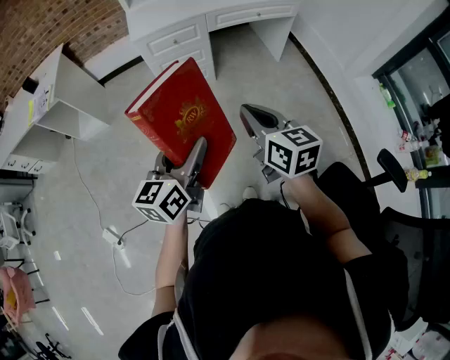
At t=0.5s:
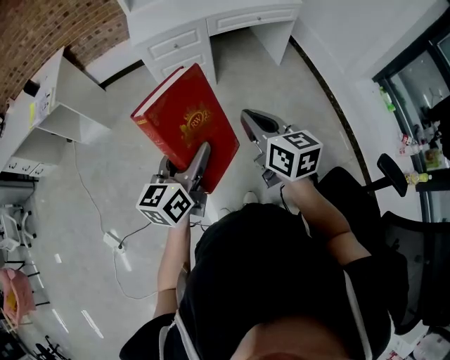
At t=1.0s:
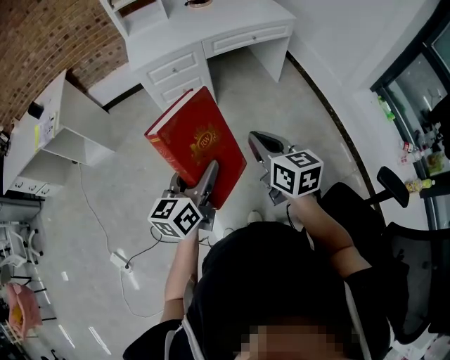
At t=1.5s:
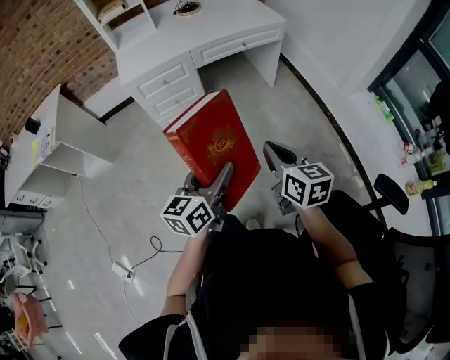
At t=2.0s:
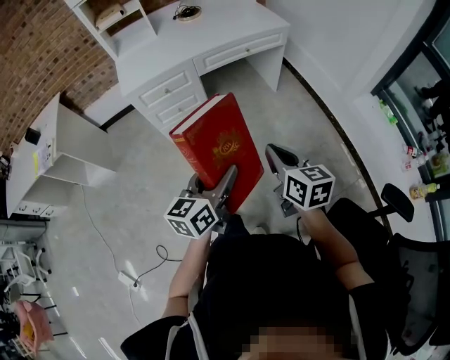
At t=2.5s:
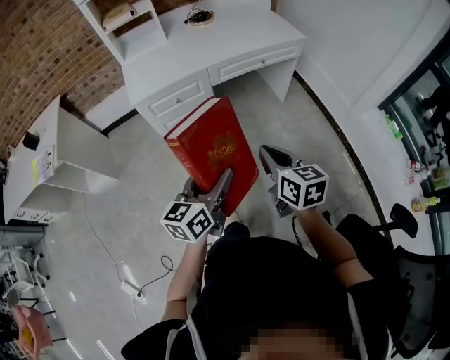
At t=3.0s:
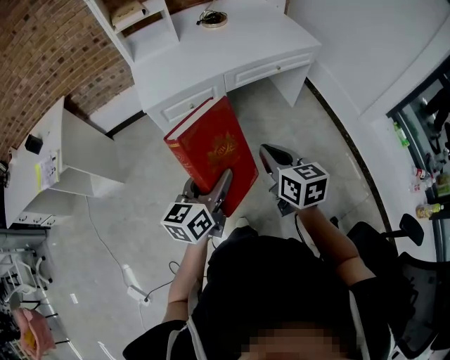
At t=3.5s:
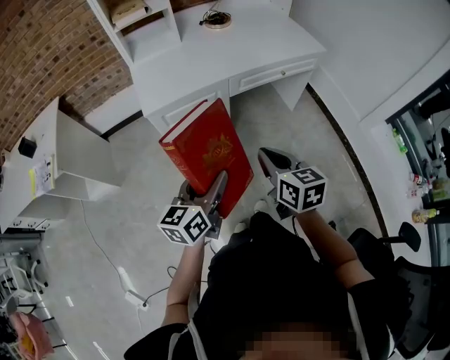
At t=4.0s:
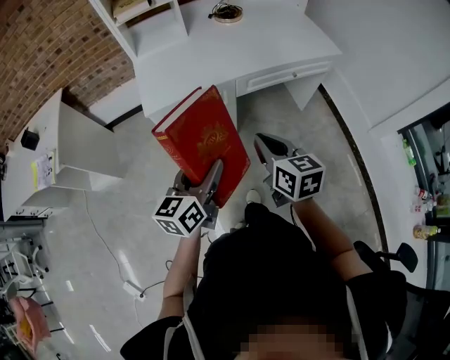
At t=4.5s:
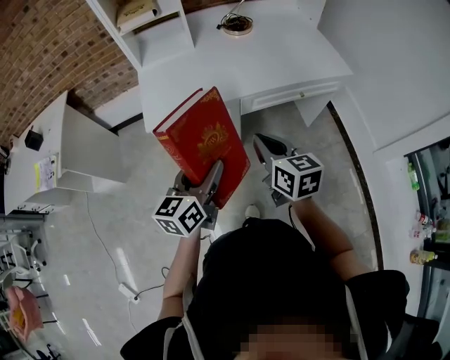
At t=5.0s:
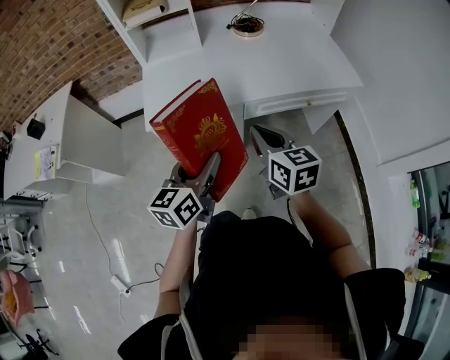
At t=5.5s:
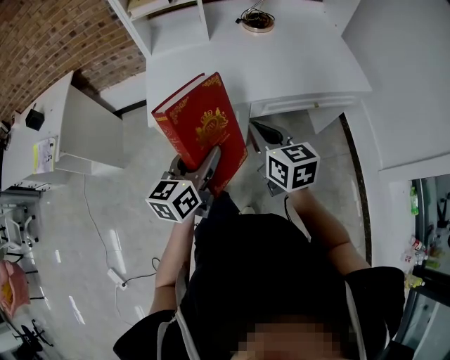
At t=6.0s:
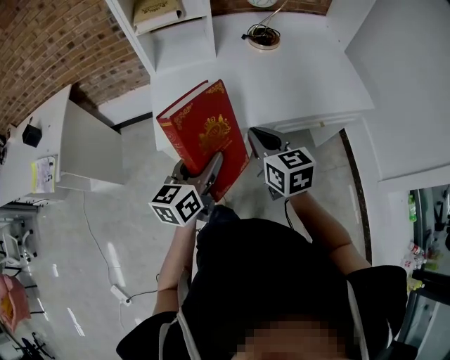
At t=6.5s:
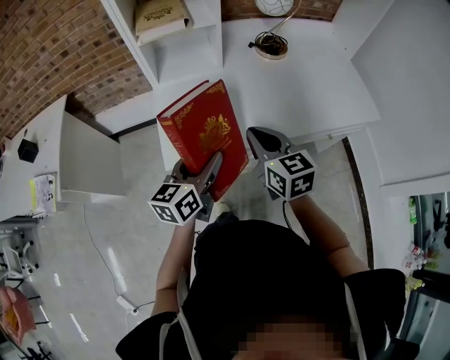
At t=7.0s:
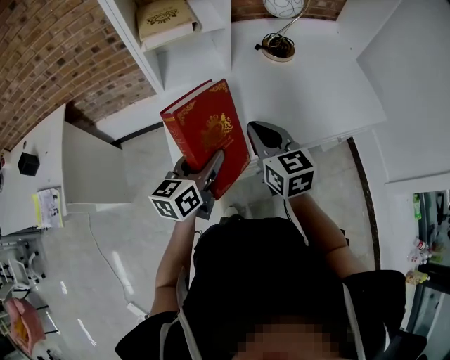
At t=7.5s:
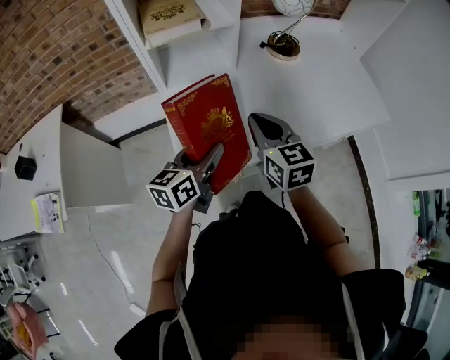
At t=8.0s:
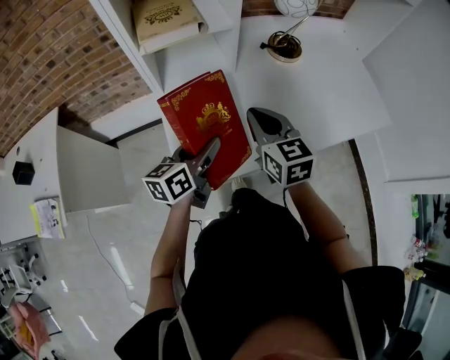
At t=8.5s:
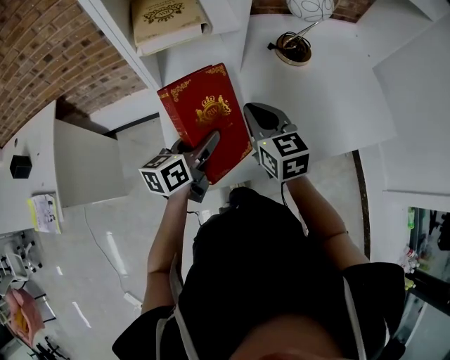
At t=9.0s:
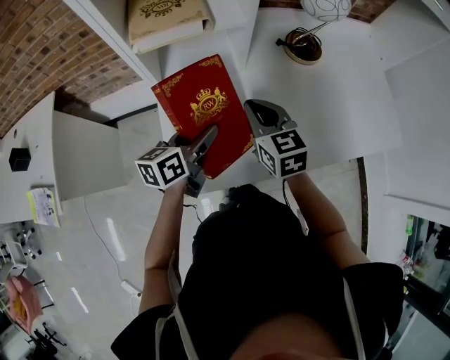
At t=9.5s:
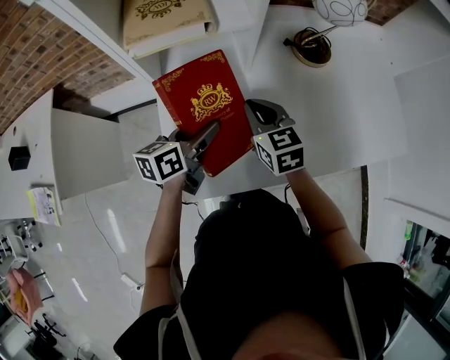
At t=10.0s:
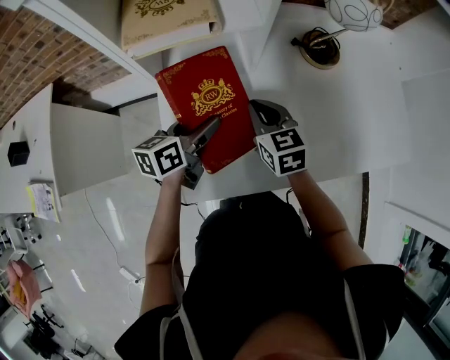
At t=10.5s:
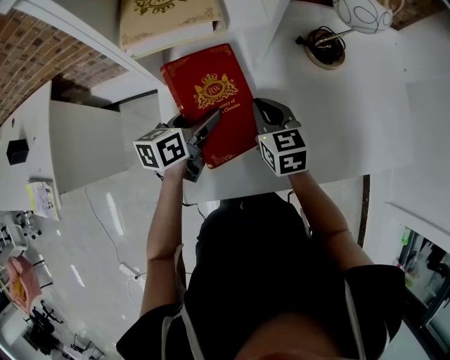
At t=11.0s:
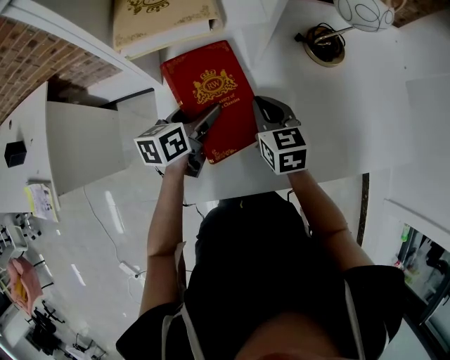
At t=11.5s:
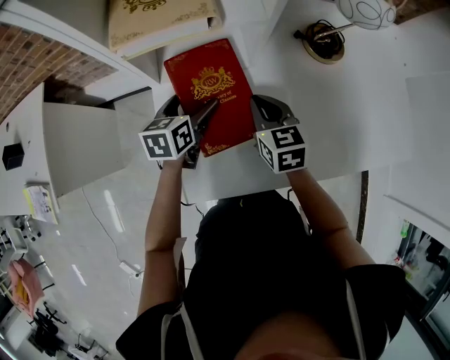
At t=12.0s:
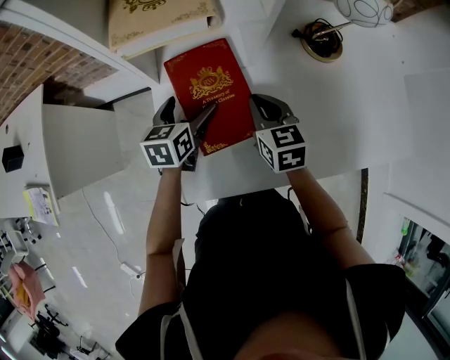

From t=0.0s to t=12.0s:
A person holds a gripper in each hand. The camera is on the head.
From t=0.0s to t=2.0s: The left gripper goes roughly 15 cm forward and to the right. The right gripper travels to the right and forward by approximately 15 cm.
From t=2.0s to t=4.0s: The grippers both shift forward and to the left by some 35 cm.
From t=4.0s to t=6.0s: Both grippers travel together forward, about 20 cm.
From t=6.0s to t=8.0s: Both grippers travel together forward and to the left, some 25 cm.
From t=8.0s to t=10.0s: The right gripper shifts roughly 15 cm forward and downward. Meanwhile the left gripper is displaced forward by approximately 15 cm.
From t=10.0s to t=12.0s: The left gripper shifts by roughly 5 cm, turns by some 20 degrees, and opens its fingers.

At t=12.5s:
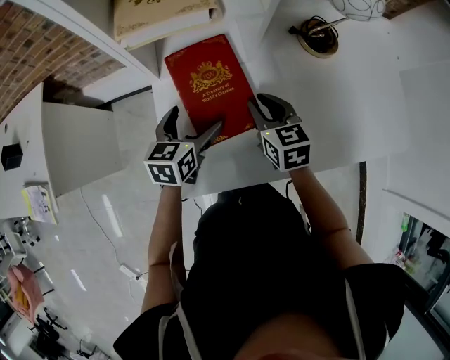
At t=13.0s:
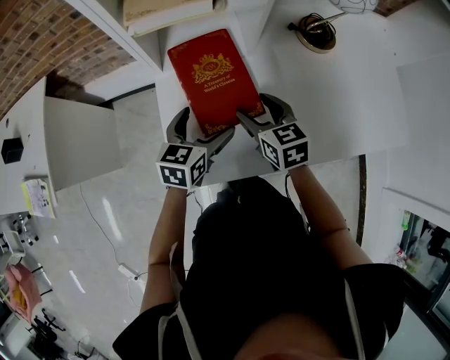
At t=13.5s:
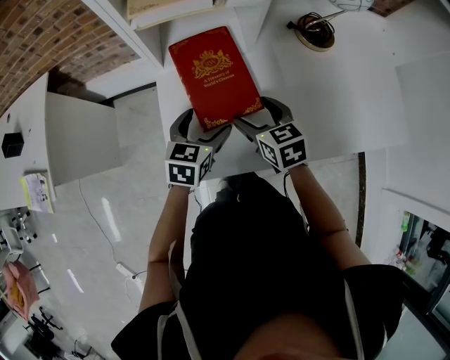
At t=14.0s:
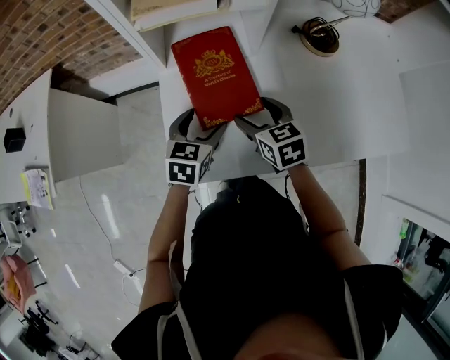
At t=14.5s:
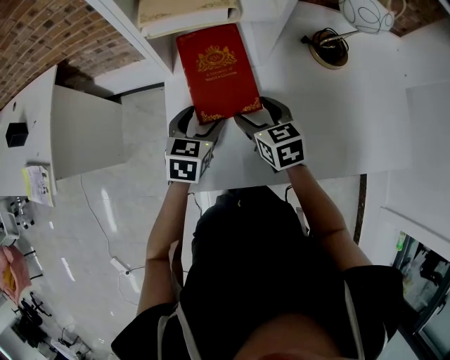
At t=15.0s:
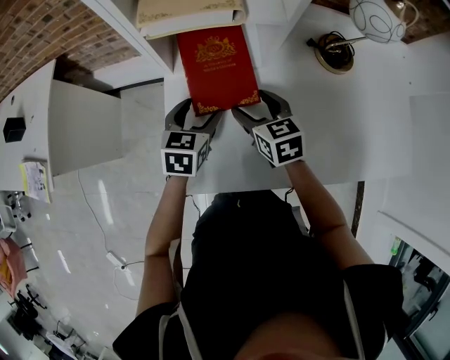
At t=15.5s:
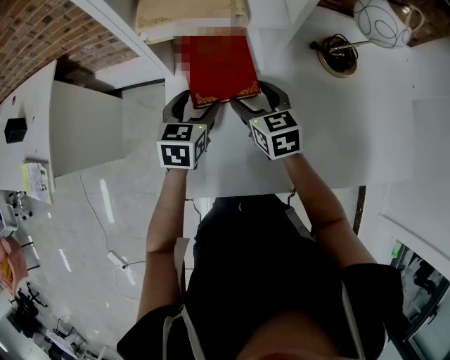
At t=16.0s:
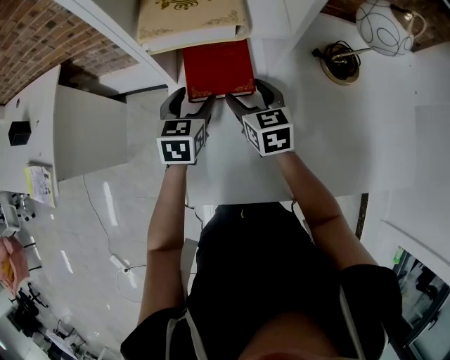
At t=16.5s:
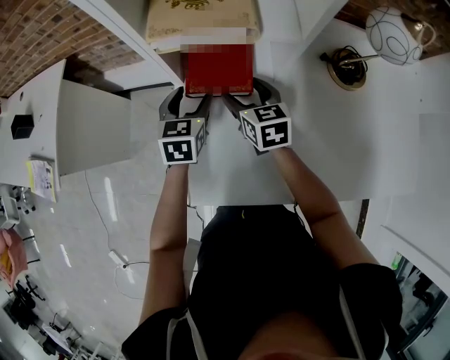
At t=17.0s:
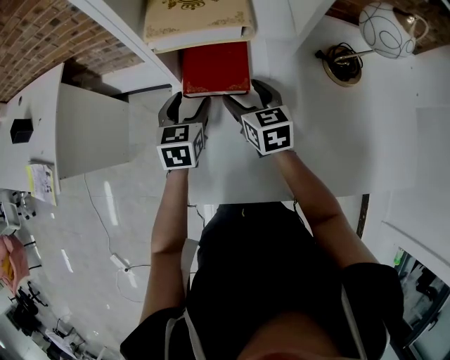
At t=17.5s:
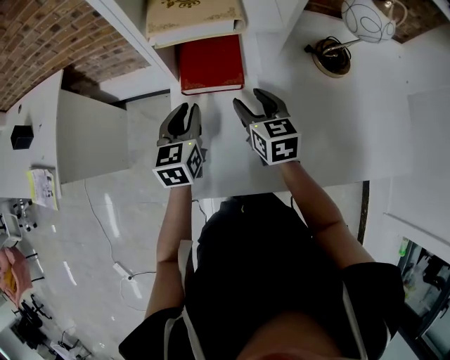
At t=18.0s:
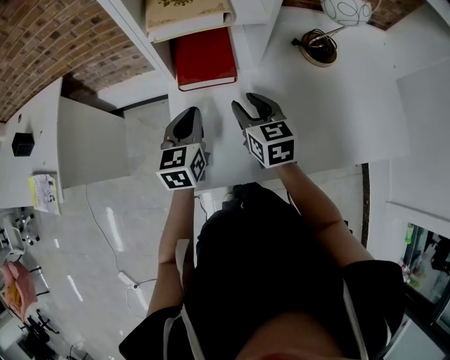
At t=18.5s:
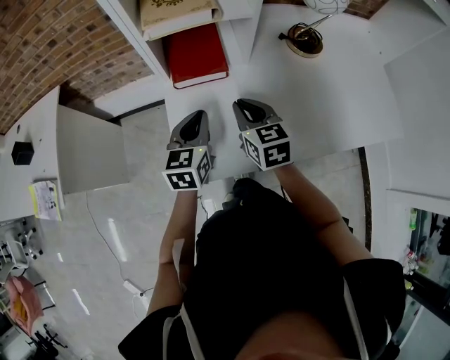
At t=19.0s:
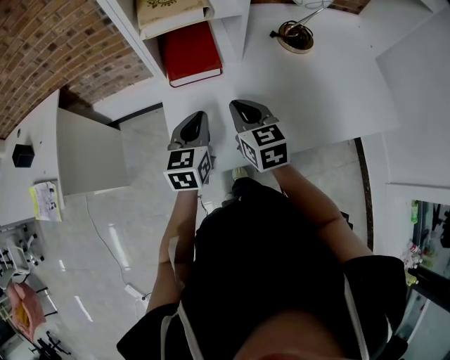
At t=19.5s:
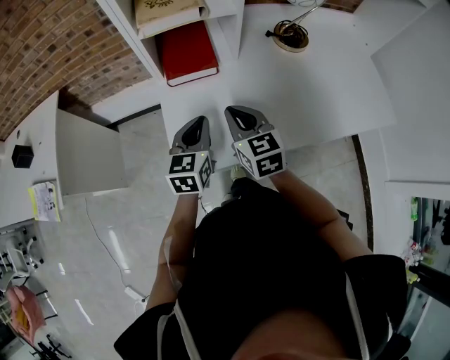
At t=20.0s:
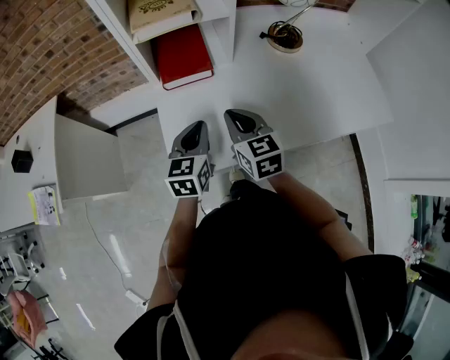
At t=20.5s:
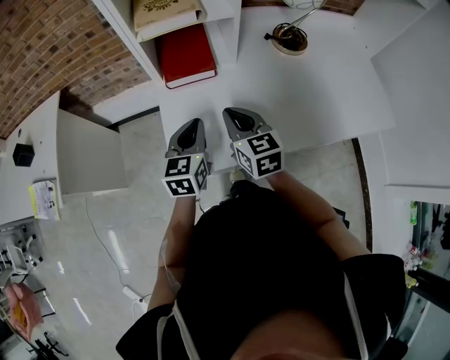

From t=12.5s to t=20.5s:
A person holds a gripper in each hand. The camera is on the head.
From t=12.5s to t=14.5s: The left gripper closes its fingers, while the right gripper opens.
From t=14.5s to t=16.5s: The two grippers go some 10 cm forward.
From t=16.5s to t=18.5s: The left gripper travels backward by about 15 cm, and closes its fingers, while the right gripper shifts about 15 cm backward and upward, and closes up.
From t=18.5s to t=20.5s: The two grippers go about 5 cm backward.

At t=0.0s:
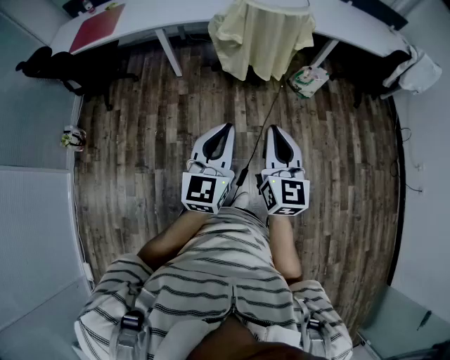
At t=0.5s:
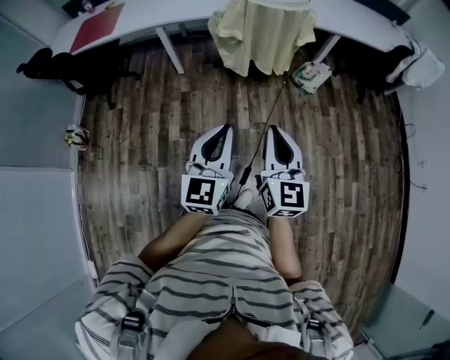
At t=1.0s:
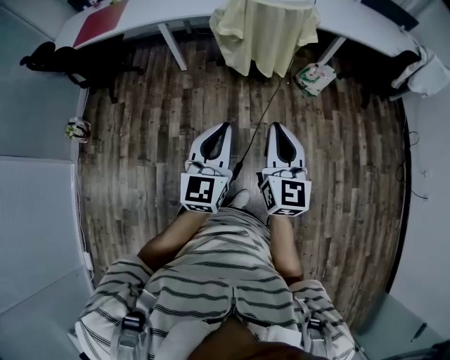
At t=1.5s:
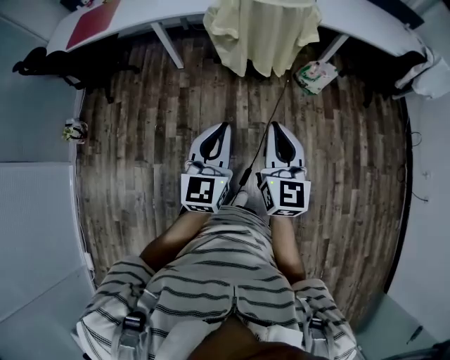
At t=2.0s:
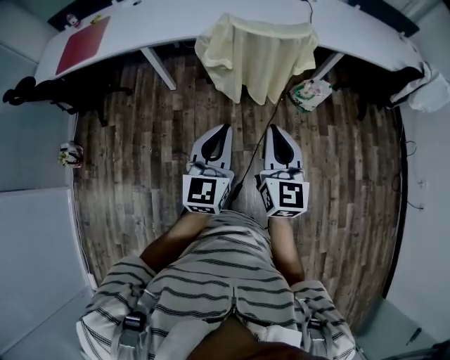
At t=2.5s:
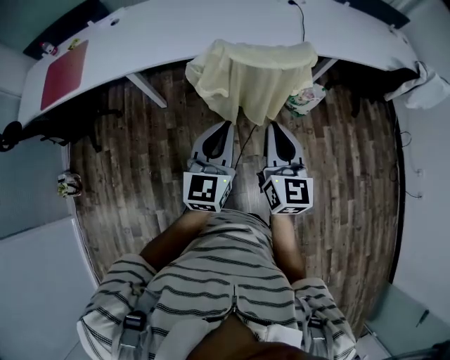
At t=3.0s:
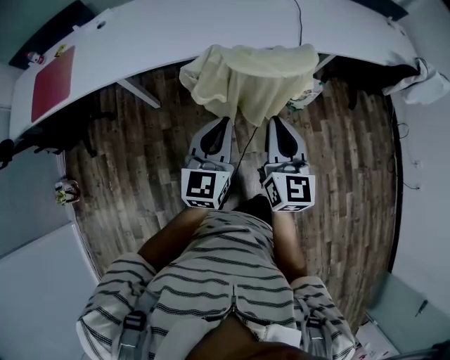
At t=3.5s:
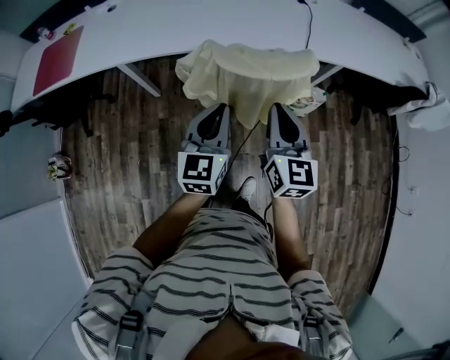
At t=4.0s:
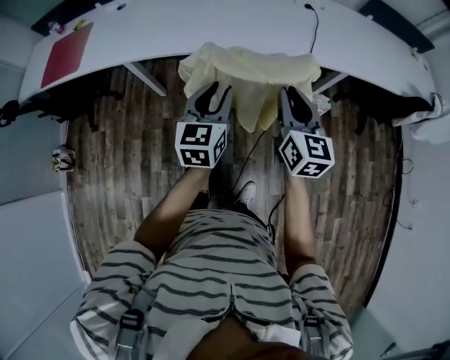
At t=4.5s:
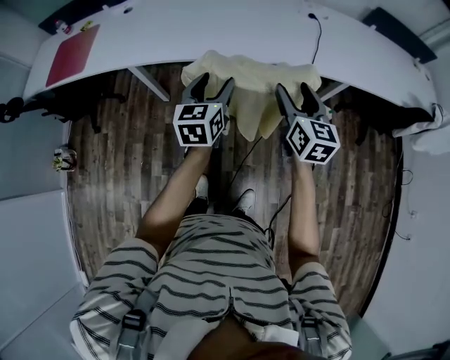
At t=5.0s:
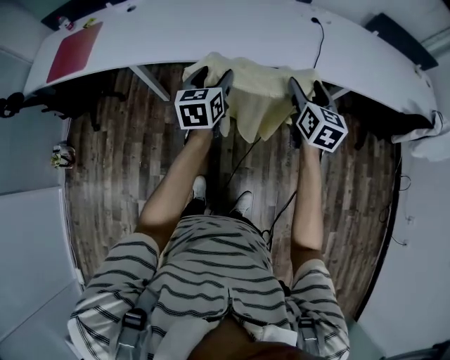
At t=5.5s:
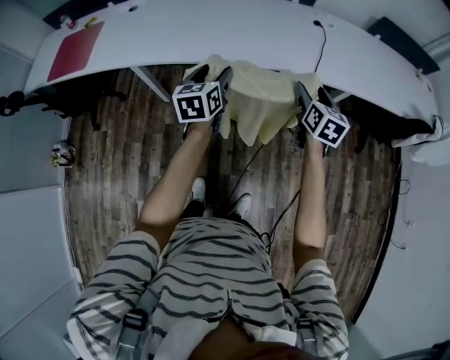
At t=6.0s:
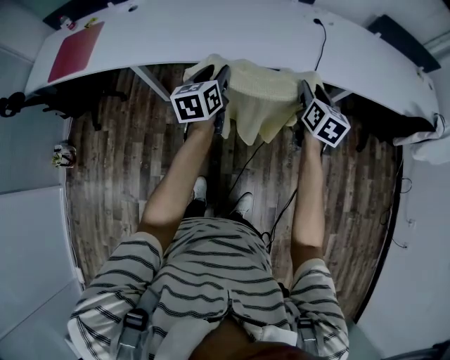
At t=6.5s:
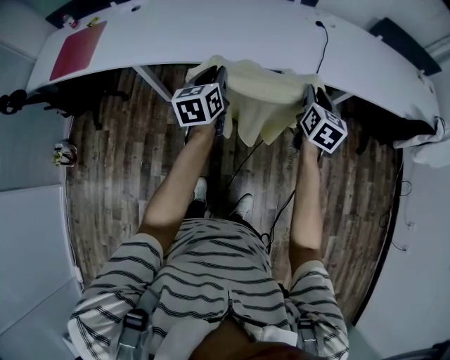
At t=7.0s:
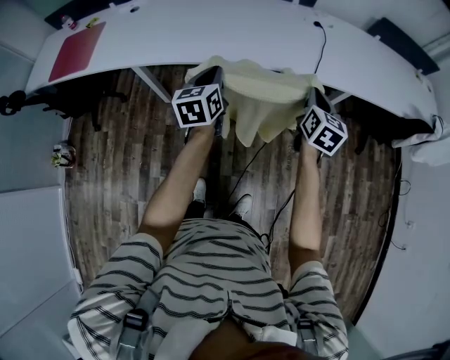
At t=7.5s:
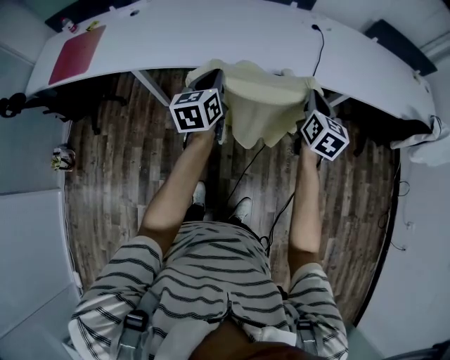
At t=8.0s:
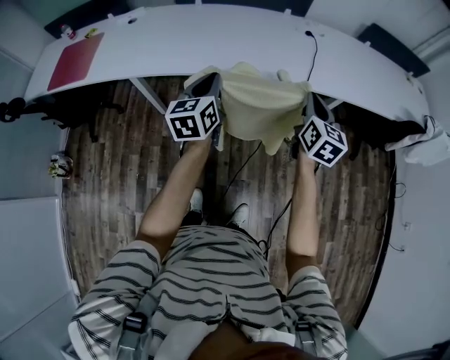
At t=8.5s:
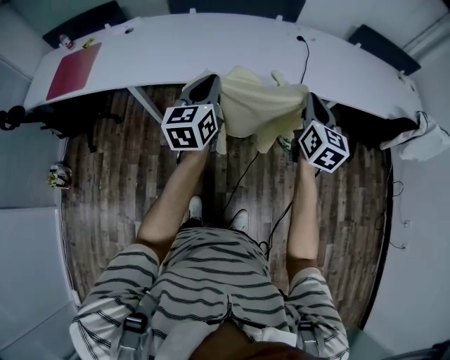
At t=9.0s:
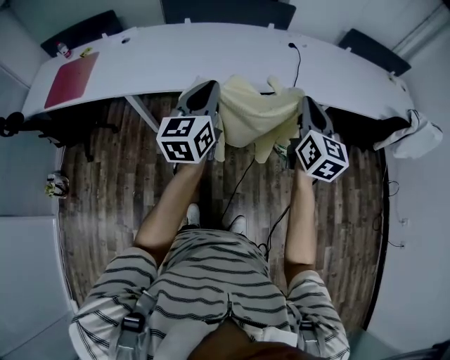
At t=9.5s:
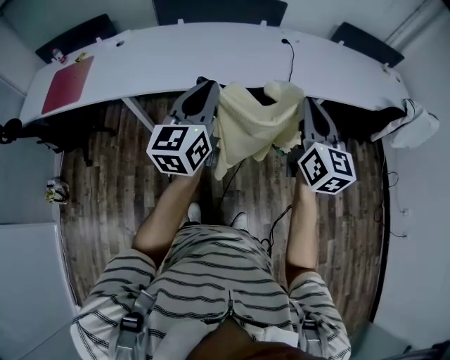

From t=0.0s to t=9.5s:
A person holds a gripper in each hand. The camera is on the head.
From t=0.0s to t=2.0s: The two grippers go some 20 cm forward.
From t=2.0s to t=4.0s: The grippers both shift forward by roughly 30 cm. The left gripper opens up.
From t=4.0s to t=5.5s: The left gripper heads forward, covering approximately 10 cm, and opens its fingers; the right gripper heads forward, to the right and downward, covering roughly 15 cm, and opens.
From t=5.5s to t=7.5s: The right gripper closes its fingers; the left gripper closes up.
From t=7.5s to t=9.5s: The grippers both shift upward and backward by approximately 20 cm. The left gripper changes its angle by roughly 20 degrees.
